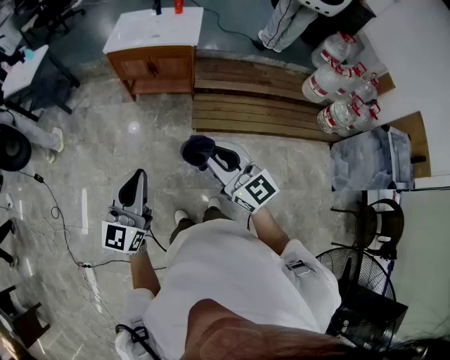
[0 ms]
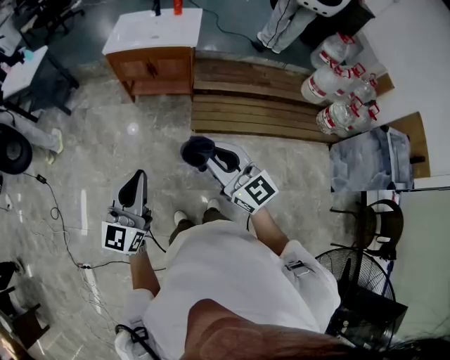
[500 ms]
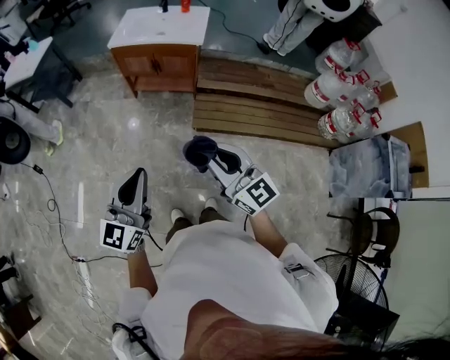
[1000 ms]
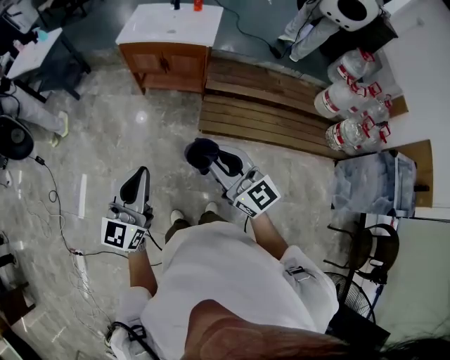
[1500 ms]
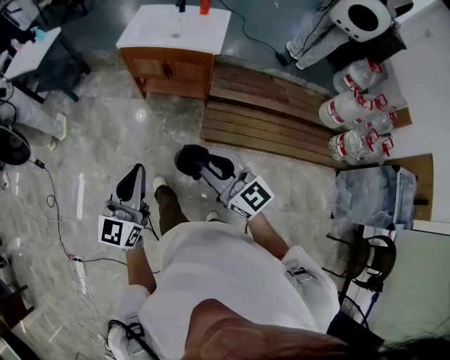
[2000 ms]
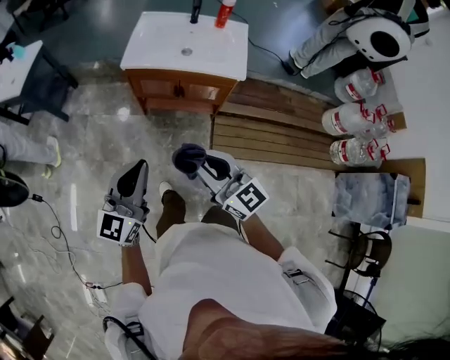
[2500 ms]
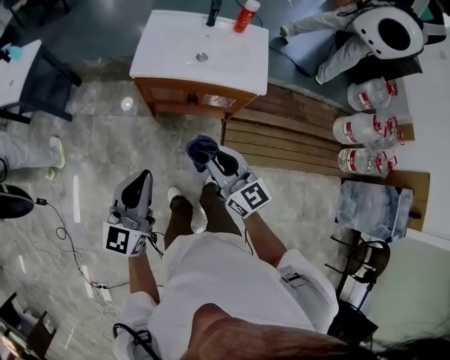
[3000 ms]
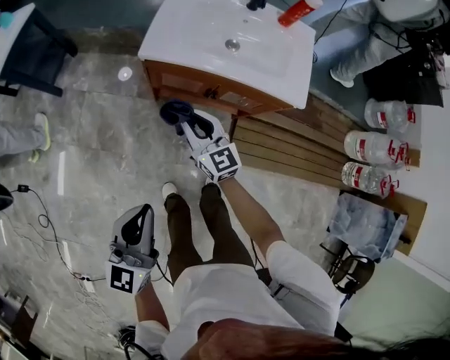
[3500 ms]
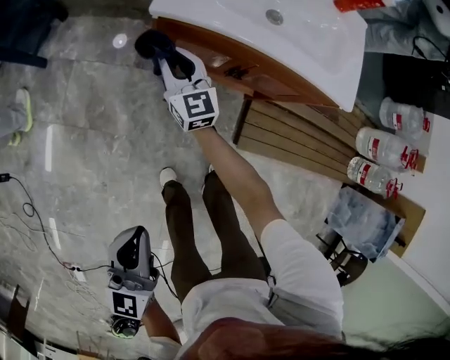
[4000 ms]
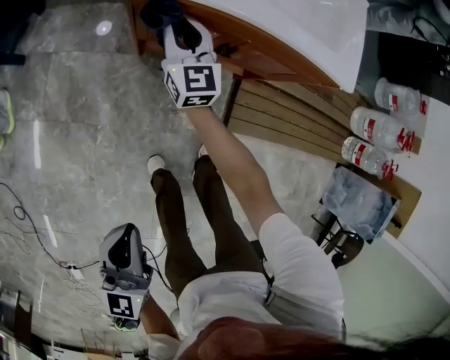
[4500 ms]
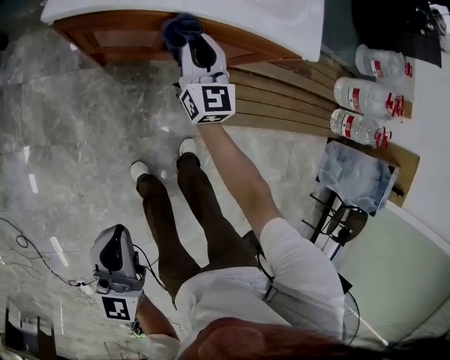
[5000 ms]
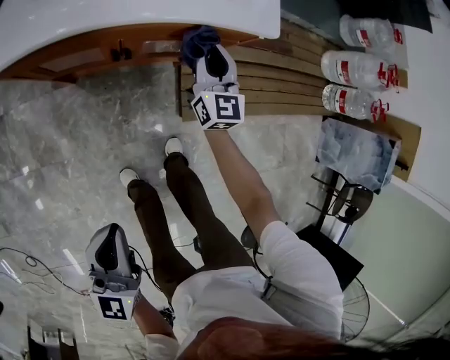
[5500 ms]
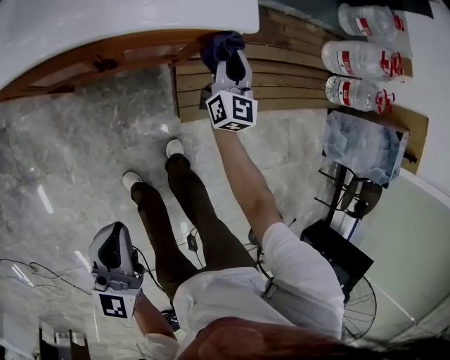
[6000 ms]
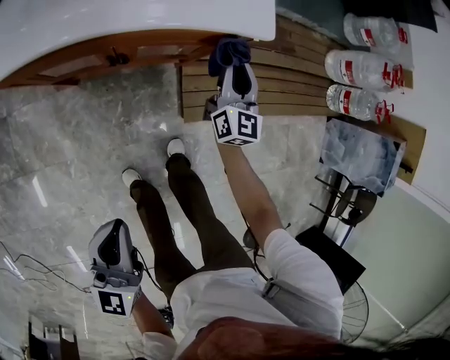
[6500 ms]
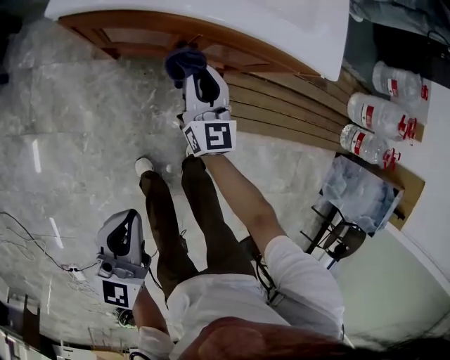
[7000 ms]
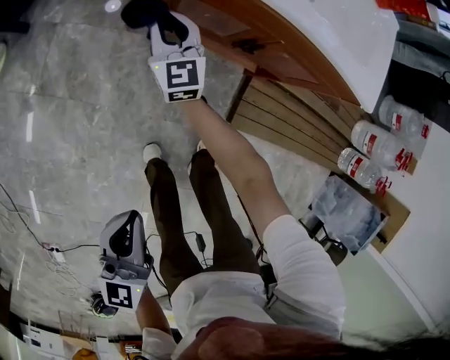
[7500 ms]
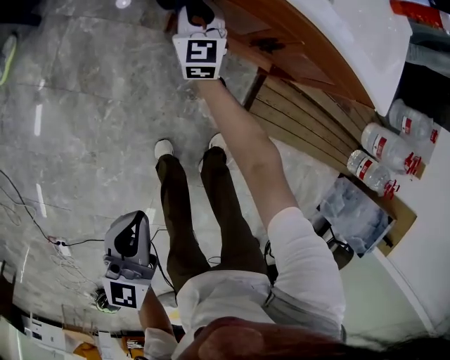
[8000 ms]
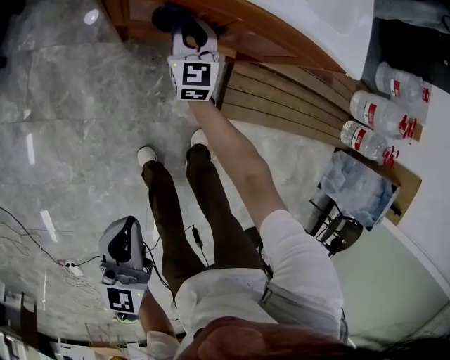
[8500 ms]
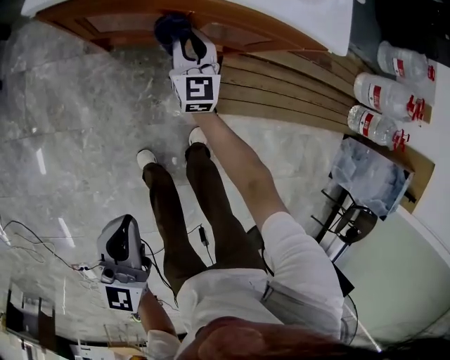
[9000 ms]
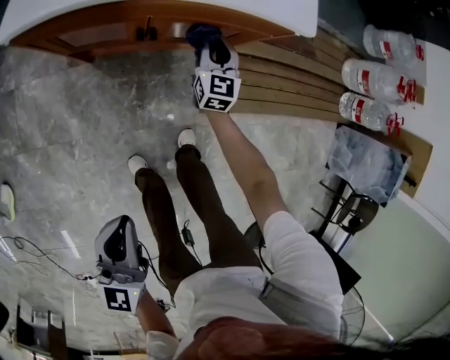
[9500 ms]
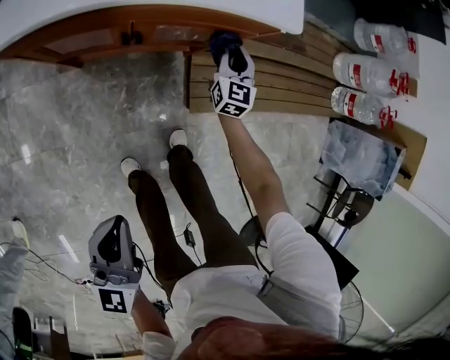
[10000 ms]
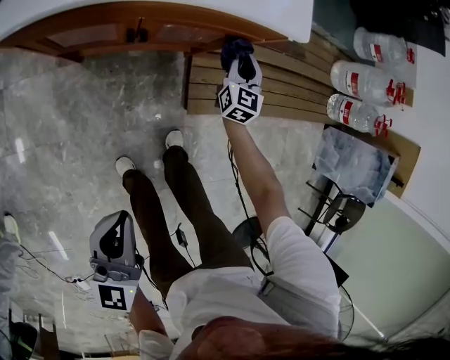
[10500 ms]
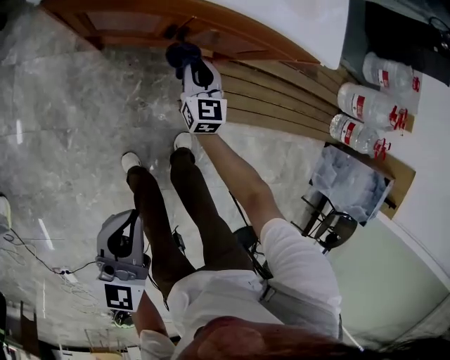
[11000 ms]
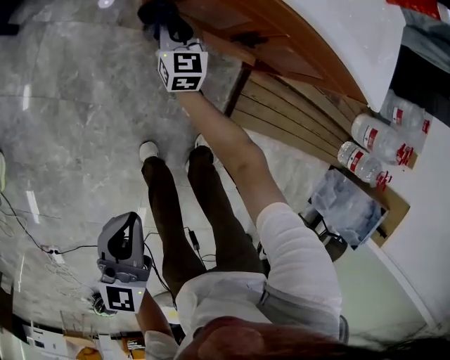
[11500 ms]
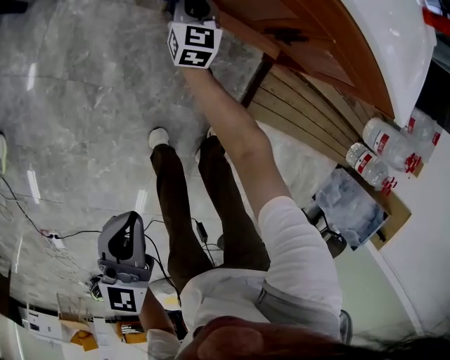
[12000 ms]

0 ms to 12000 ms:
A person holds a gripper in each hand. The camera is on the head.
0 ms to 2000 ms: The grippers both shift forward by about 15 cm.
2000 ms to 4000 ms: The two grippers travel together, forward and to the left, approximately 70 cm. The two grippers go about 40 cm downward. The left gripper rotates roughly 20 degrees.
4000 ms to 6000 ms: The left gripper shifts by roughly 25 cm, and swivels about 20 degrees. The right gripper shifts by roughly 50 cm, and turns by about 50 degrees.
6000 ms to 8000 ms: The right gripper moves roughly 60 cm, and rotates about 40 degrees; the left gripper ends up about 25 cm from where it was, and changes its angle by about 20 degrees.
8000 ms to 10000 ms: The left gripper shifts by roughly 20 cm. The right gripper changes place by some 50 cm, and rotates roughly 40 degrees.
10000 ms to 12000 ms: The left gripper moves about 20 cm; the right gripper moves about 50 cm, and changes its angle by some 30 degrees.

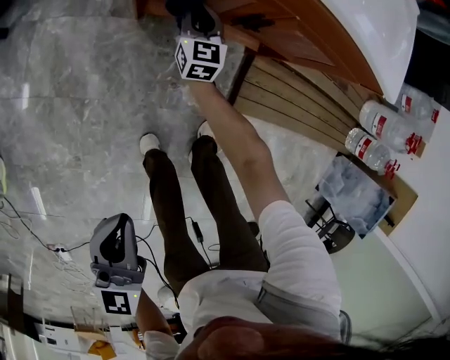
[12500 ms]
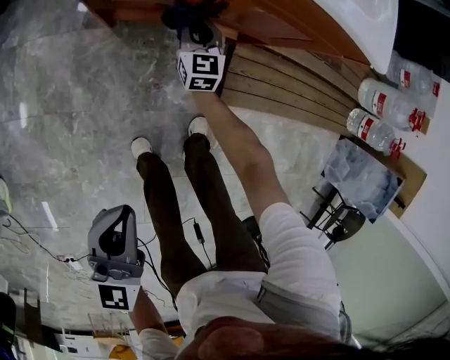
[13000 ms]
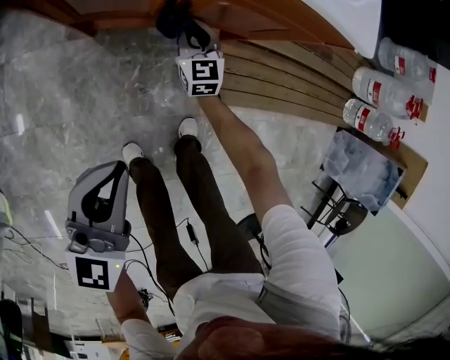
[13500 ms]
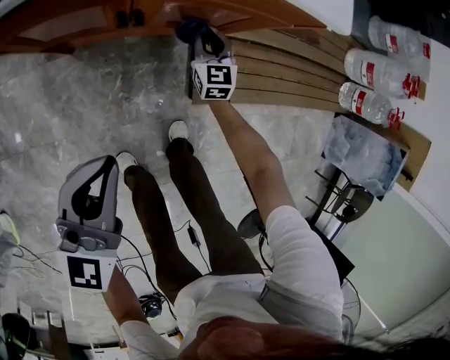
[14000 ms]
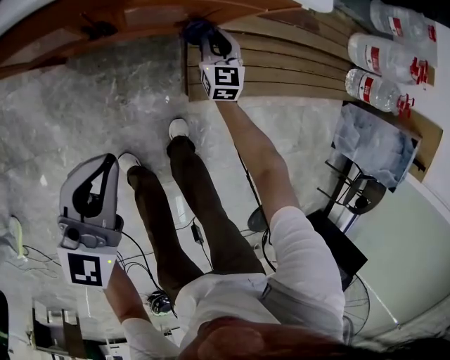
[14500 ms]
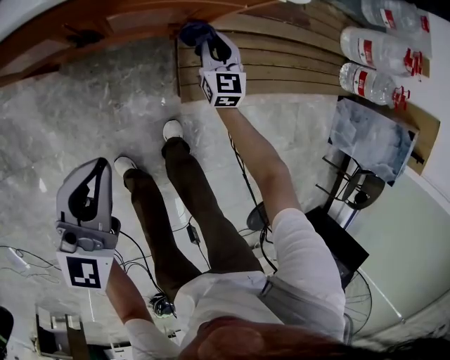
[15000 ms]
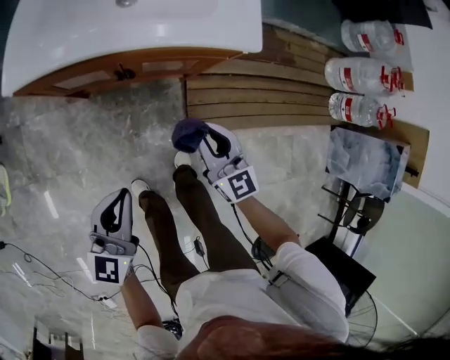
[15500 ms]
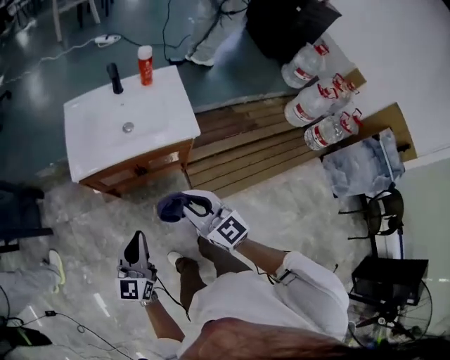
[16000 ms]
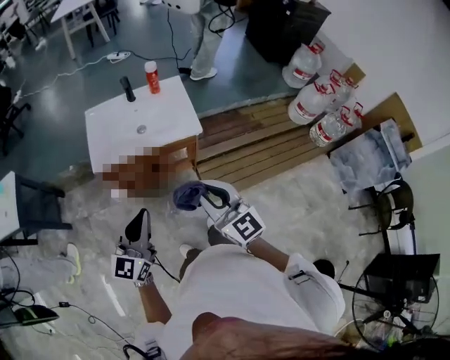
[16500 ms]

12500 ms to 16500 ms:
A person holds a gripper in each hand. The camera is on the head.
12500 ms to 14500 ms: The left gripper moves to the right and forward, about 30 cm, and changes its angle by about 30 degrees. The right gripper moves to the right, about 40 cm.
14500 ms to 16500 ms: The right gripper travels upward and backward by about 80 cm, and turns by approximately 30 degrees. The left gripper is displaced upward by about 40 cm.

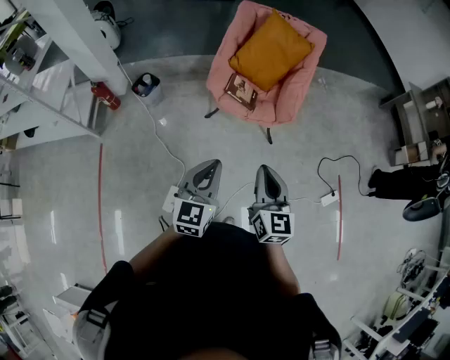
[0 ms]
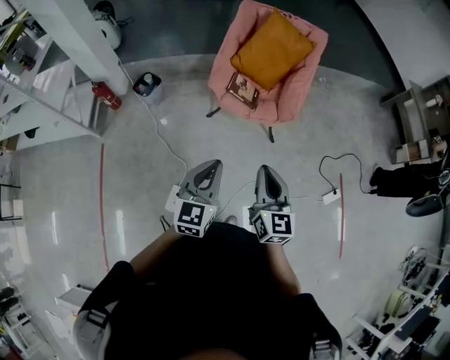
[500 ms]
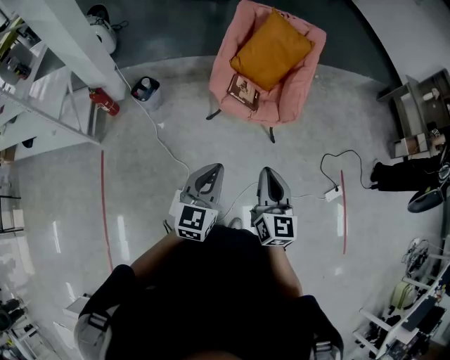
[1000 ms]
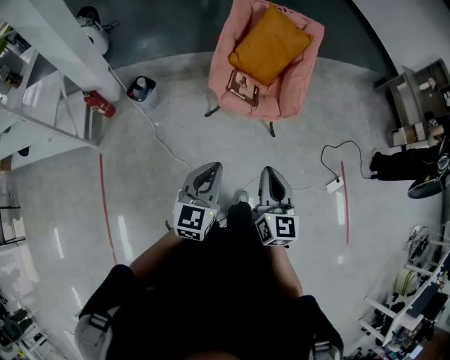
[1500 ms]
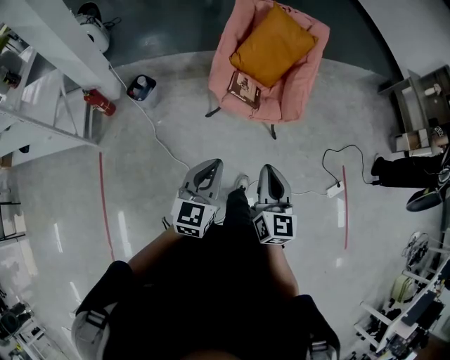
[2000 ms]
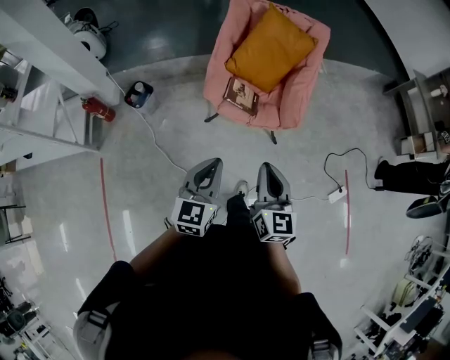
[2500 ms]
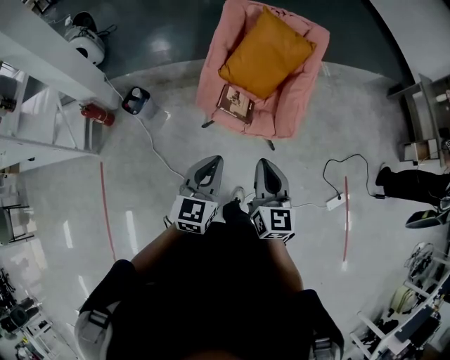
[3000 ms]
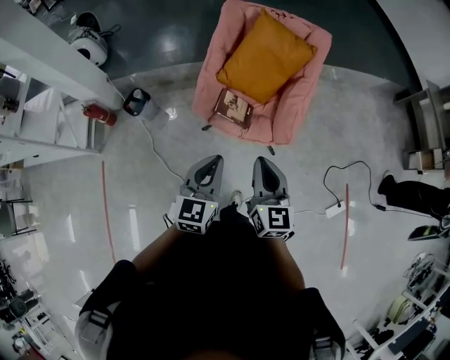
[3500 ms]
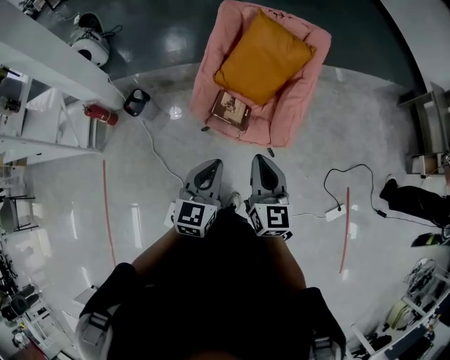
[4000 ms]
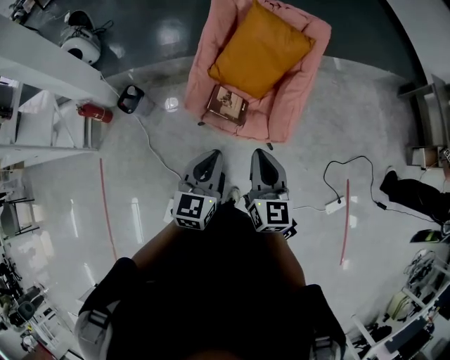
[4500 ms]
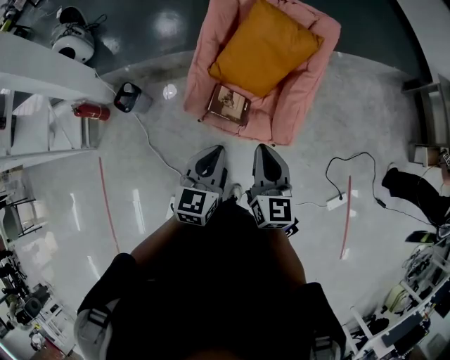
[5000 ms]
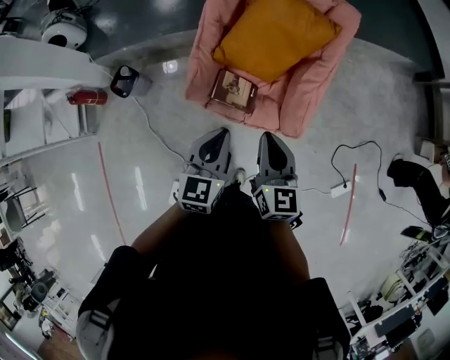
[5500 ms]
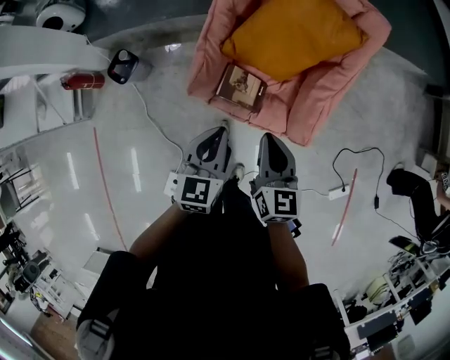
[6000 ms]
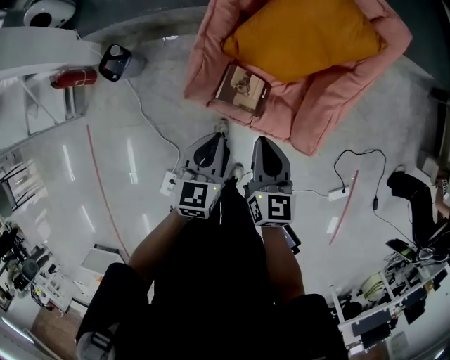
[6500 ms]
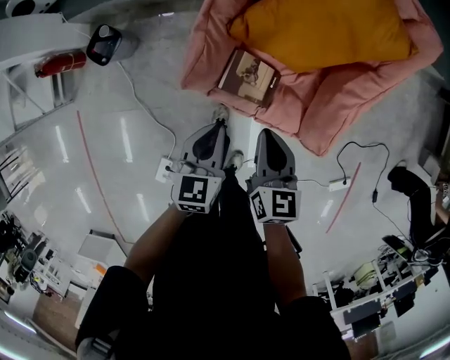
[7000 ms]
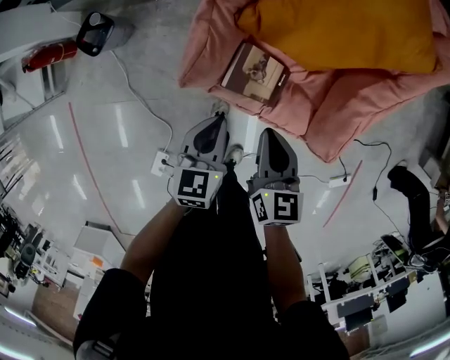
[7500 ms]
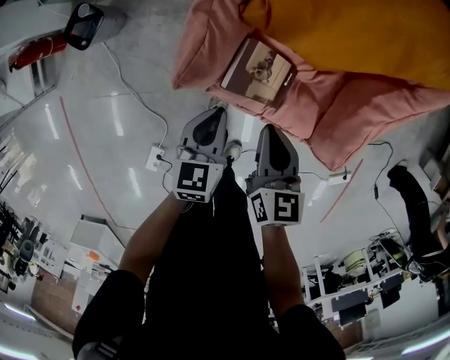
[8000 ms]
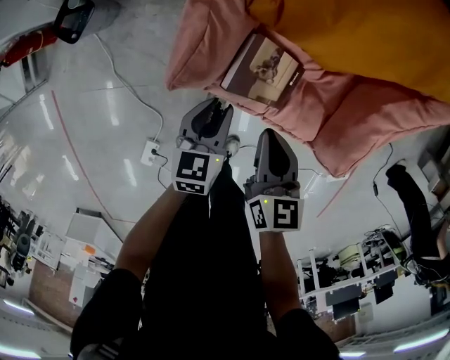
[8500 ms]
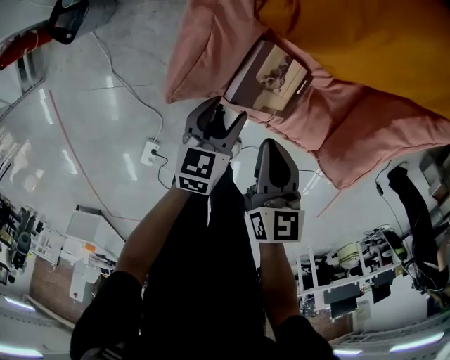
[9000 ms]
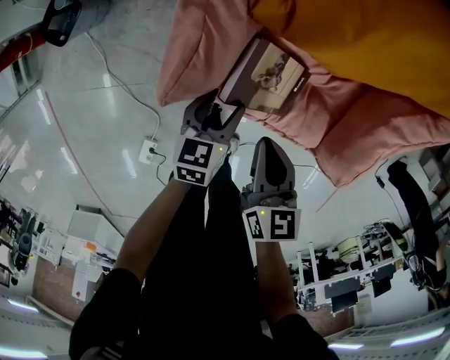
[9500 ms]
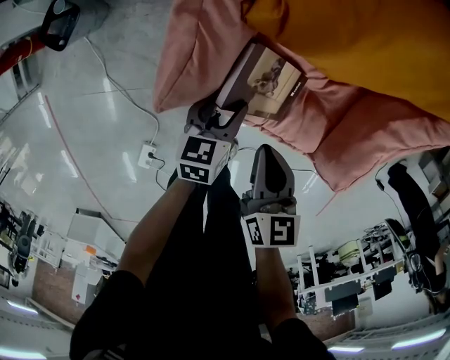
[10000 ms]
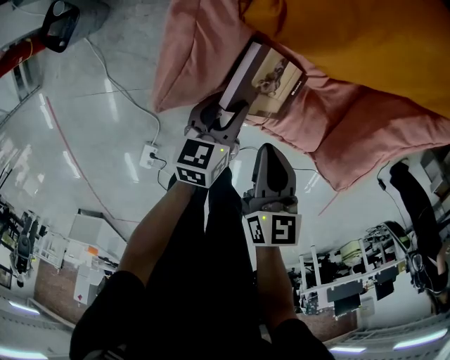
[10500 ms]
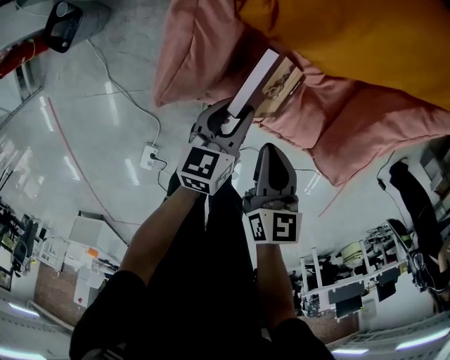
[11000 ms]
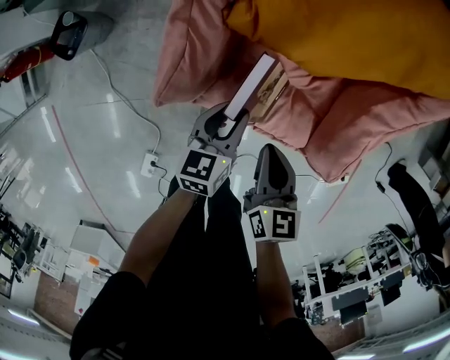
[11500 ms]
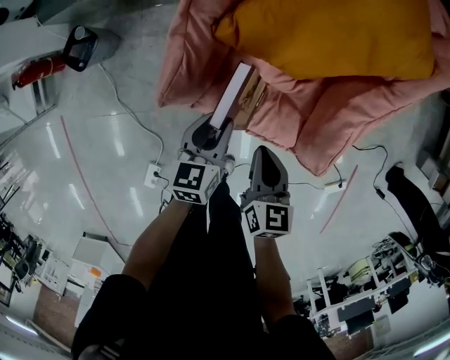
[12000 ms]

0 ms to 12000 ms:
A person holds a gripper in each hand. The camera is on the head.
0 ms to 2000 ms: Both grippers move to the left and forward, some 10 cm.
2000 ms to 4000 ms: Both grippers travel together forward and to the right, some 30 cm.
4000 ms to 6000 ms: Both grippers travel together forward and downward, about 25 cm.
6000 ms to 8000 ms: Both grippers move downward, approximately 30 cm.
8000 ms to 10000 ms: The right gripper shifts roughly 10 cm downward, while the left gripper travels downward by approximately 15 cm, and opens its fingers.
10000 ms to 12000 ms: The left gripper goes roughly 15 cm upward, and closes its fingers, while the right gripper moves upward and to the right, about 10 cm.
